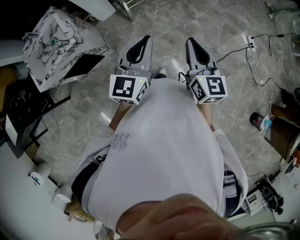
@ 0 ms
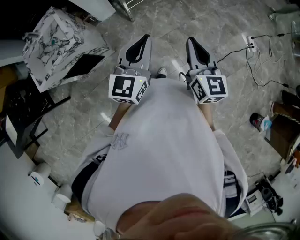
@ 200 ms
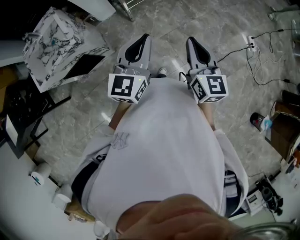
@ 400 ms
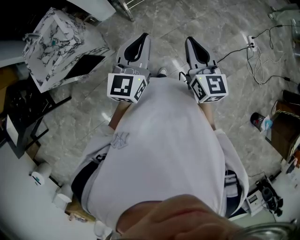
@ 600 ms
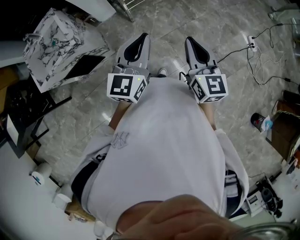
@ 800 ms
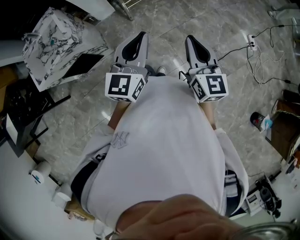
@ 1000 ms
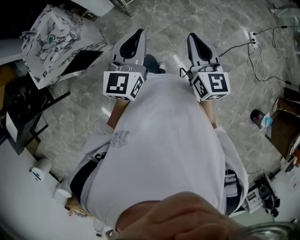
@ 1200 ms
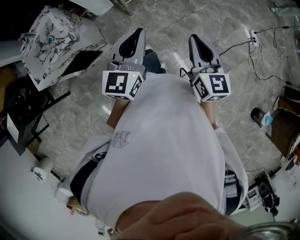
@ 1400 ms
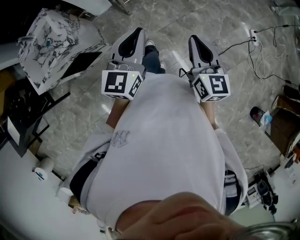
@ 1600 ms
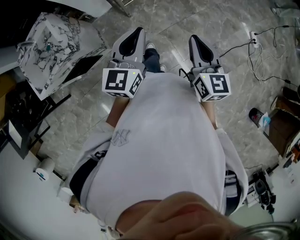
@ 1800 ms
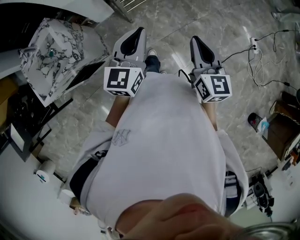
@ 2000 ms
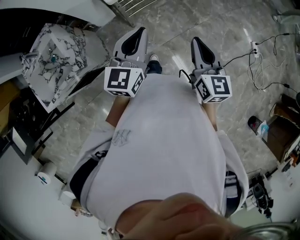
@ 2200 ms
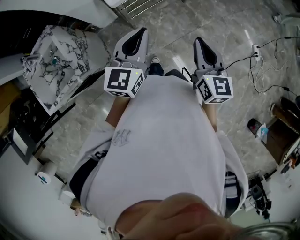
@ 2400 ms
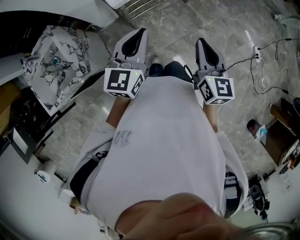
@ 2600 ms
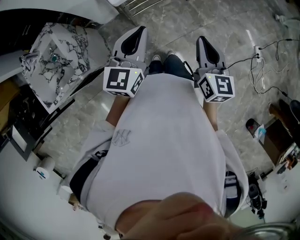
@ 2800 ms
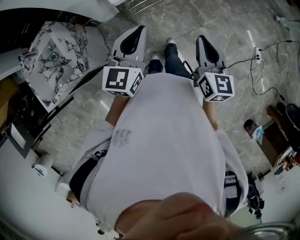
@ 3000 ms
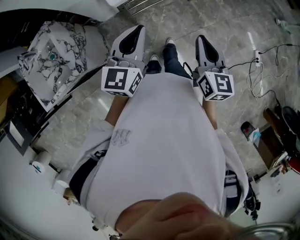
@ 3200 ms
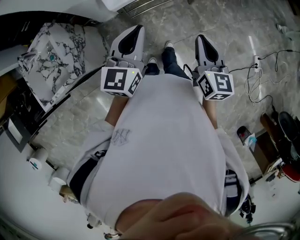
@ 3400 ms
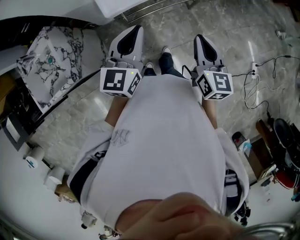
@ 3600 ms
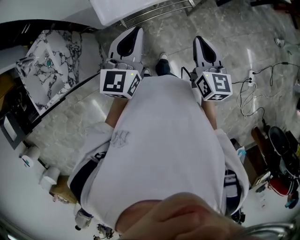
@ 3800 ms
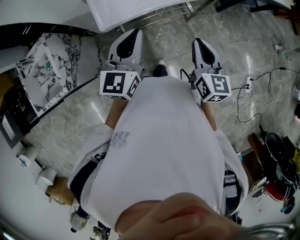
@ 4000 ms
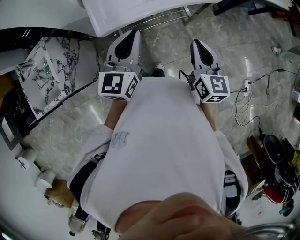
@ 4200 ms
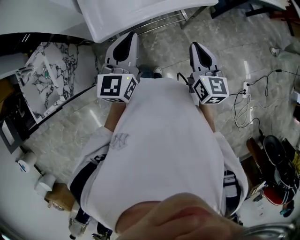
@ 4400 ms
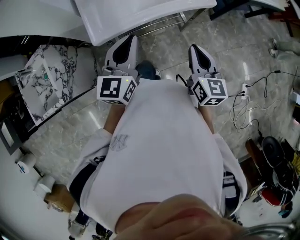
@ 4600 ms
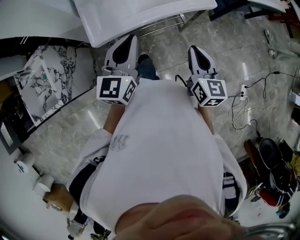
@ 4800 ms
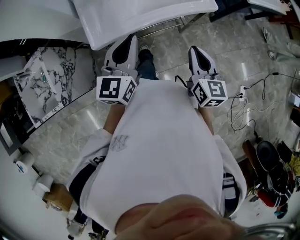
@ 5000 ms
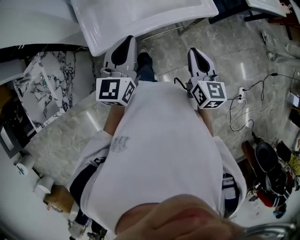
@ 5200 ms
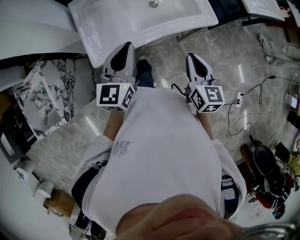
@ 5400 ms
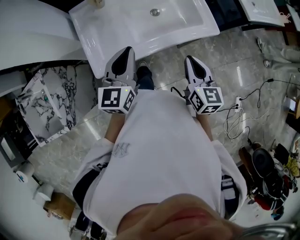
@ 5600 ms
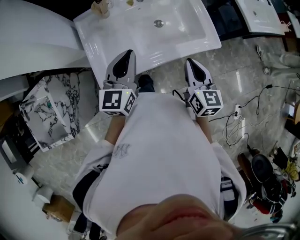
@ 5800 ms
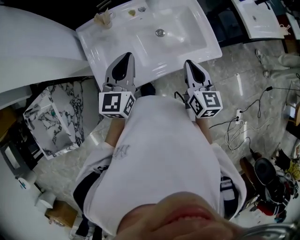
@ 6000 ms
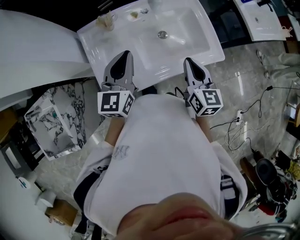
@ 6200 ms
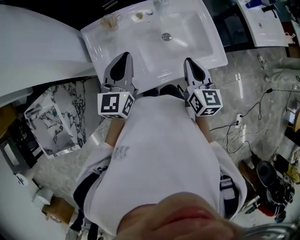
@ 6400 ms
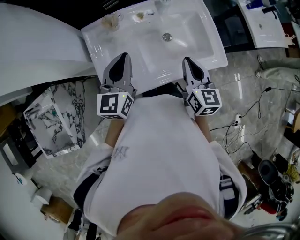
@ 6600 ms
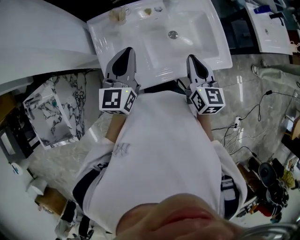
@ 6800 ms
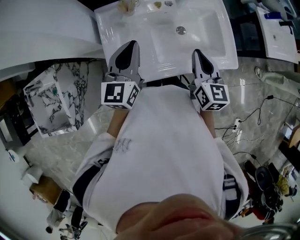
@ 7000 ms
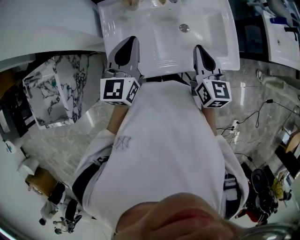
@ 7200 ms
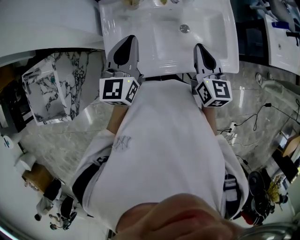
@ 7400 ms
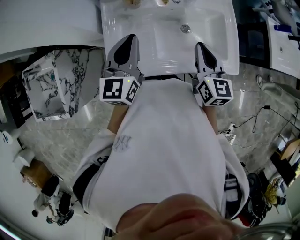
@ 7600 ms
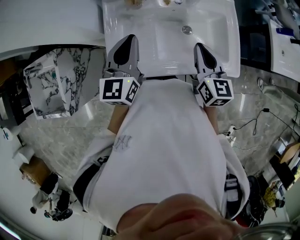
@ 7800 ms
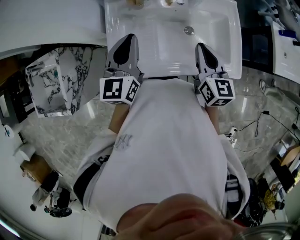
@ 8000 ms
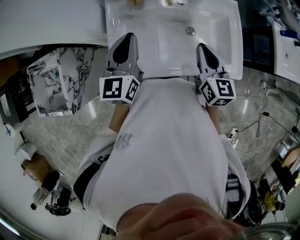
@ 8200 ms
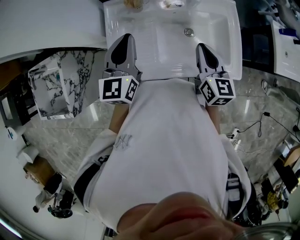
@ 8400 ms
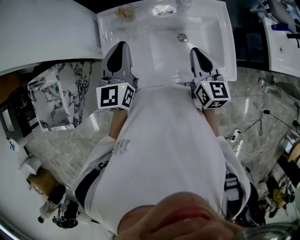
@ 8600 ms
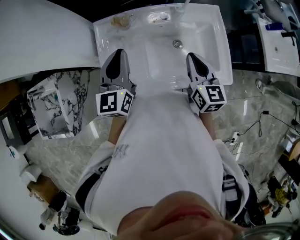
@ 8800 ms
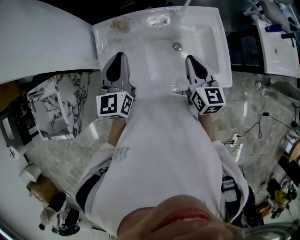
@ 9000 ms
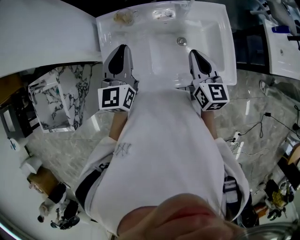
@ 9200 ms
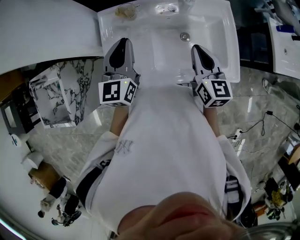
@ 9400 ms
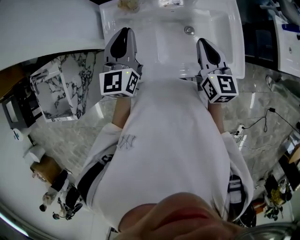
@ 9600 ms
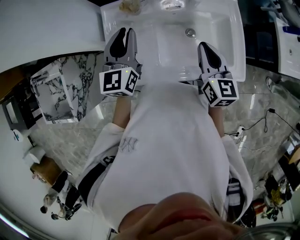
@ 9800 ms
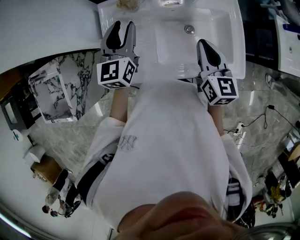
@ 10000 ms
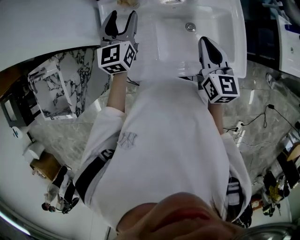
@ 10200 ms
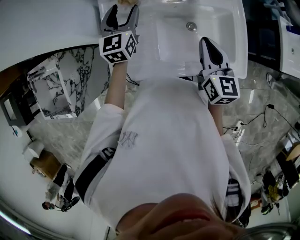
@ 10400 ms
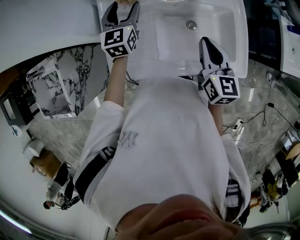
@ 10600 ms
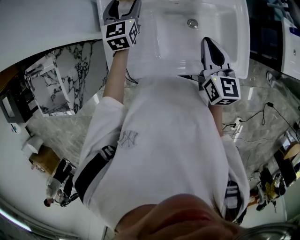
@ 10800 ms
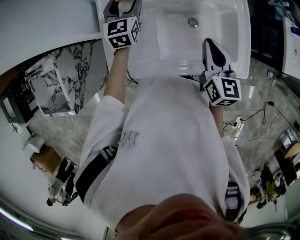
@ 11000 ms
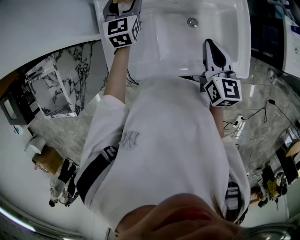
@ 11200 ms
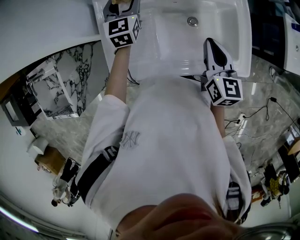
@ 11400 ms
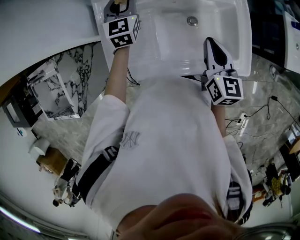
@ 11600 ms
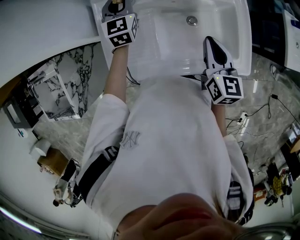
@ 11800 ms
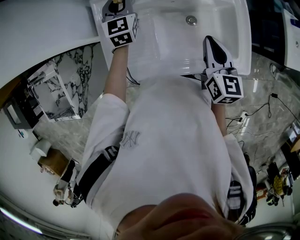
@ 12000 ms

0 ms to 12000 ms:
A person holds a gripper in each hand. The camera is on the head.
0 ms to 1600 ms: The left gripper changes place by roughly 5 cm. Meanwhile the right gripper moves approximately 5 cm.
1600 ms to 3000 ms: The two grippers go approximately 25 cm forward.
3000 ms to 4400 ms: Both grippers move forward and to the right, approximately 20 cm.
4400 ms to 6000 ms: Both grippers move forward, roughly 25 cm.
6000 ms to 7600 ms: The left gripper moves to the left, approximately 5 cm, while the right gripper travels forward by roughly 10 cm.
7600 ms to 9000 ms: The grippers make only small movements.
9000 ms to 10400 ms: The left gripper goes approximately 15 cm forward and downward, and opens its fingers.
10400 ms to 12000 ms: The left gripper moves forward, approximately 5 cm, and closes.

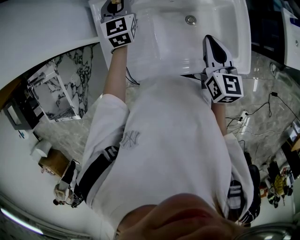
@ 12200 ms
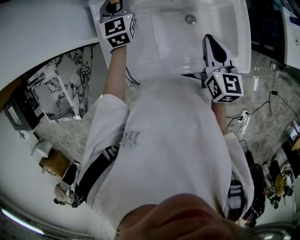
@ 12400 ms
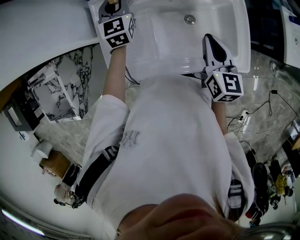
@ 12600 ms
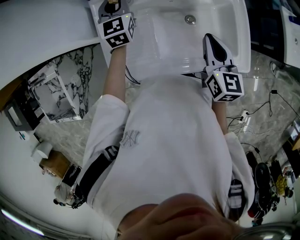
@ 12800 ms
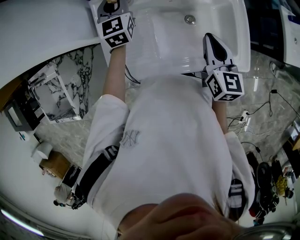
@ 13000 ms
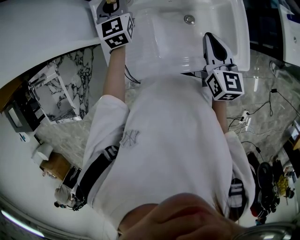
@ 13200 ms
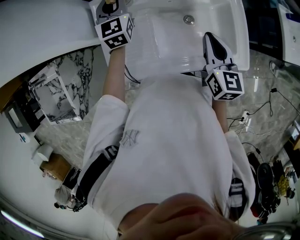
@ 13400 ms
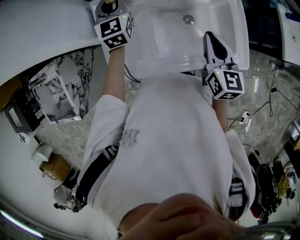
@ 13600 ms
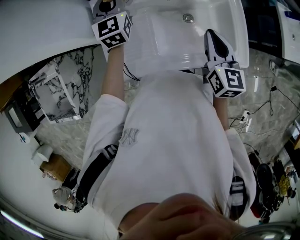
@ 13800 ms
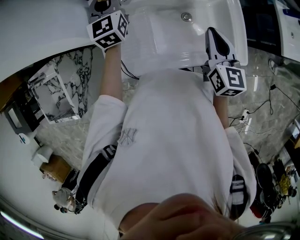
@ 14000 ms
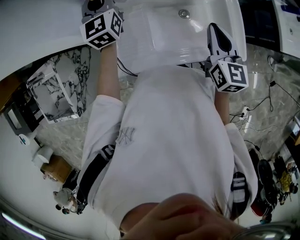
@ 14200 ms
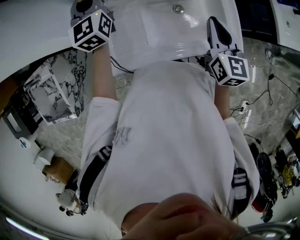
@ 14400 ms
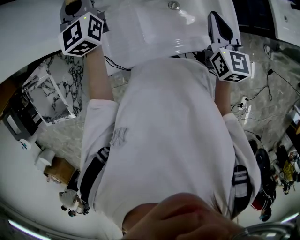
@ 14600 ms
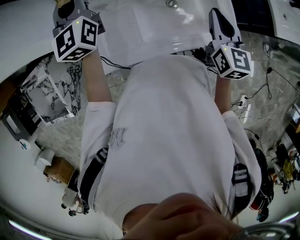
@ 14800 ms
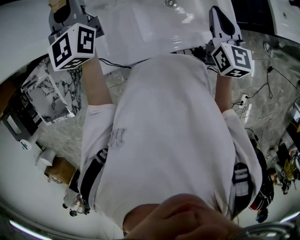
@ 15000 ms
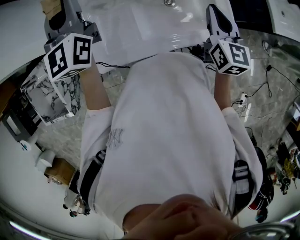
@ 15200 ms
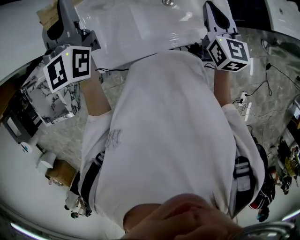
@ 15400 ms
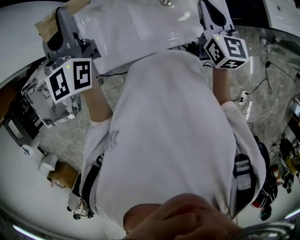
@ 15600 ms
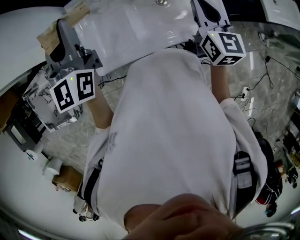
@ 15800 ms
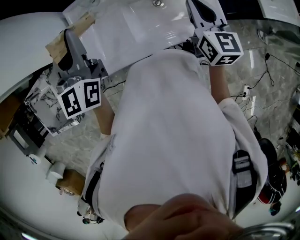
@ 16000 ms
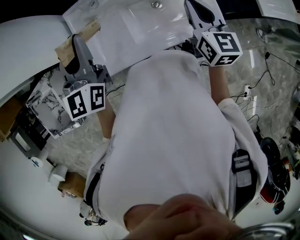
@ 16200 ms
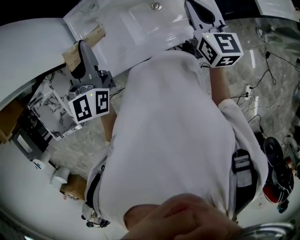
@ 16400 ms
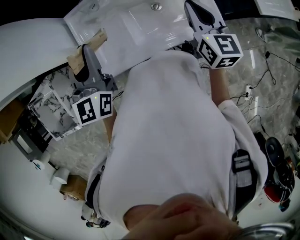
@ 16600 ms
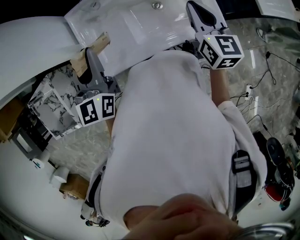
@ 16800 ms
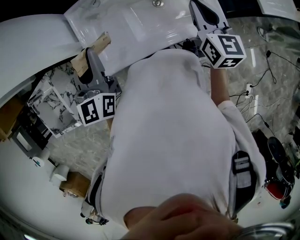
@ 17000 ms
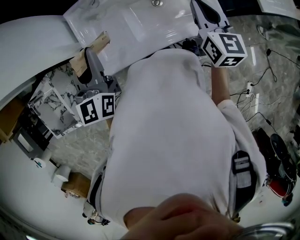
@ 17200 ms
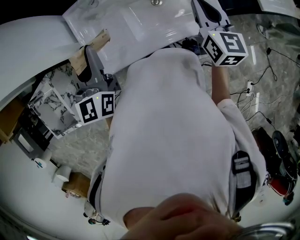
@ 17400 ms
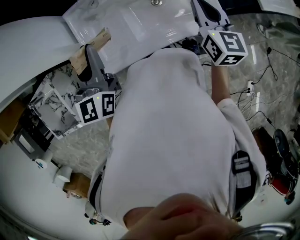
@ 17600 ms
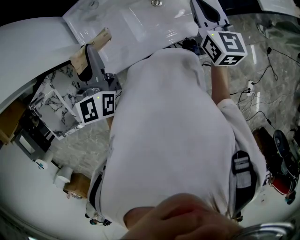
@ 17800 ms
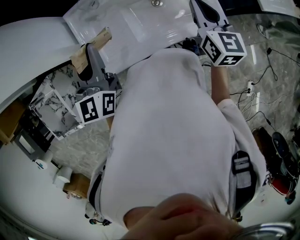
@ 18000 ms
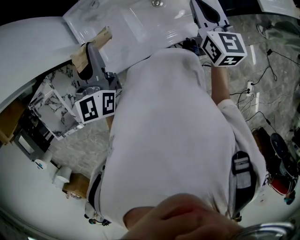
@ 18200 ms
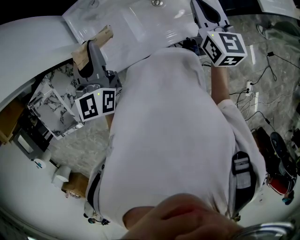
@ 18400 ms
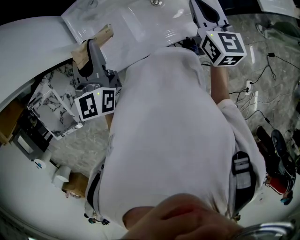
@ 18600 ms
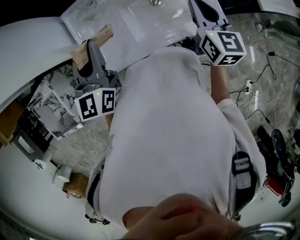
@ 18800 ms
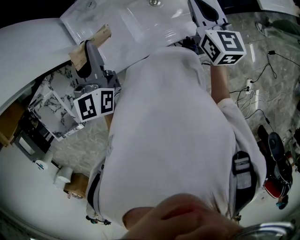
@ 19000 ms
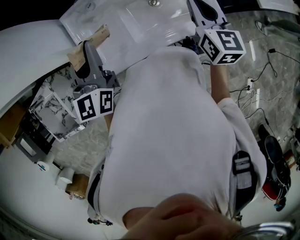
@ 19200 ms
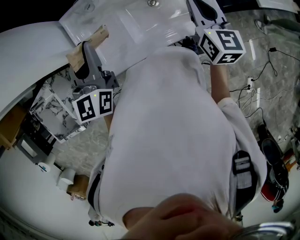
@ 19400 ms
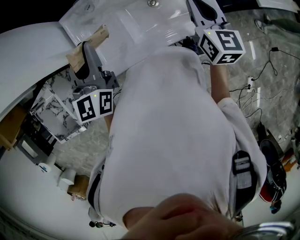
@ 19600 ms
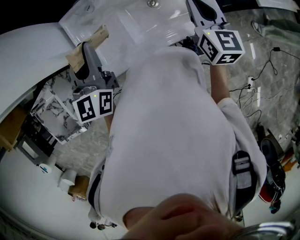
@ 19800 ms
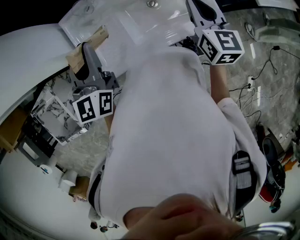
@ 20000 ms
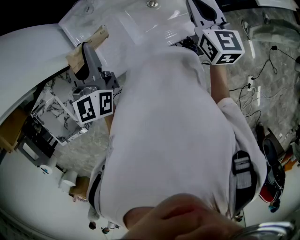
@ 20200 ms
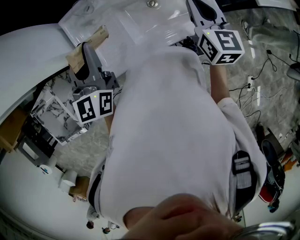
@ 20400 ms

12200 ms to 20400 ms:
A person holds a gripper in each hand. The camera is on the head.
12200 ms to 13800 ms: The left gripper travels upward by about 5 cm.
13800 ms to 15400 ms: The right gripper shifts about 5 cm to the right, while the left gripper travels upward and backward by about 20 cm.
15400 ms to 17200 ms: The left gripper shifts roughly 15 cm backward and downward.
17200 ms to 20400 ms: There are only small adjustments of the grippers.

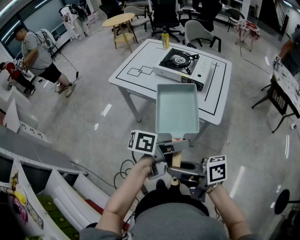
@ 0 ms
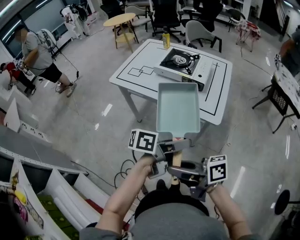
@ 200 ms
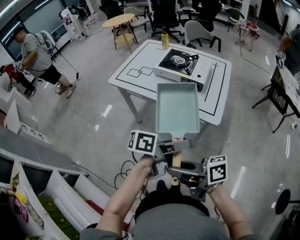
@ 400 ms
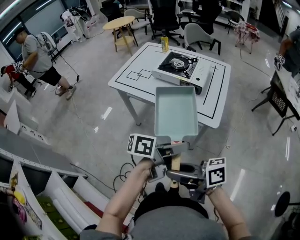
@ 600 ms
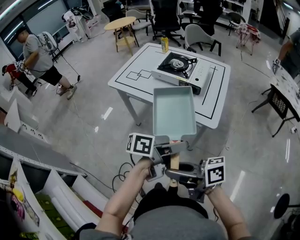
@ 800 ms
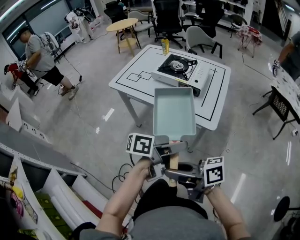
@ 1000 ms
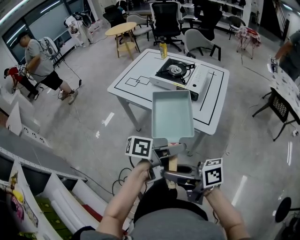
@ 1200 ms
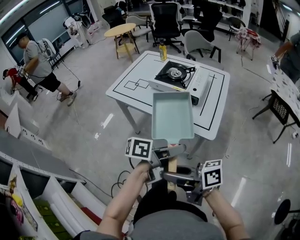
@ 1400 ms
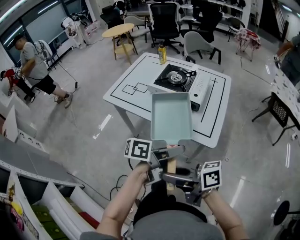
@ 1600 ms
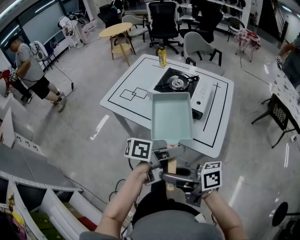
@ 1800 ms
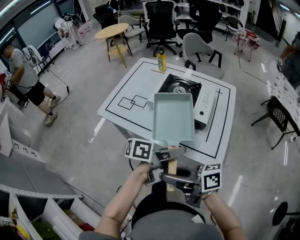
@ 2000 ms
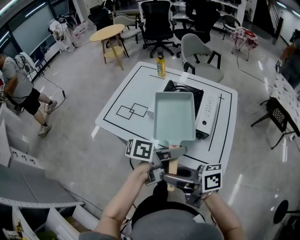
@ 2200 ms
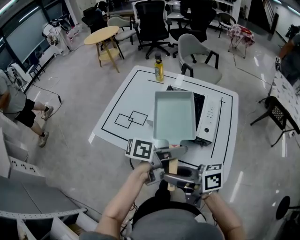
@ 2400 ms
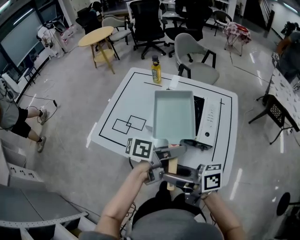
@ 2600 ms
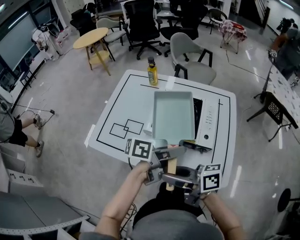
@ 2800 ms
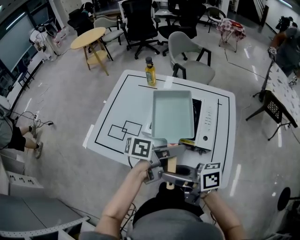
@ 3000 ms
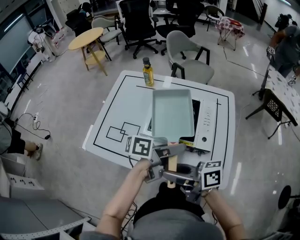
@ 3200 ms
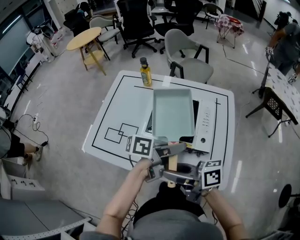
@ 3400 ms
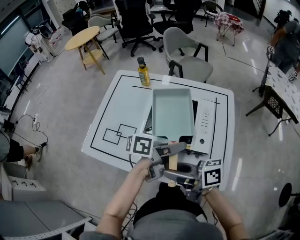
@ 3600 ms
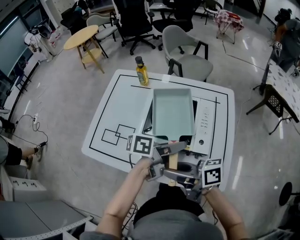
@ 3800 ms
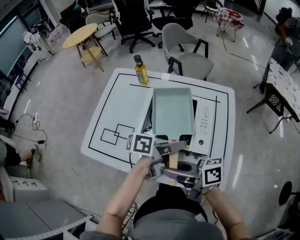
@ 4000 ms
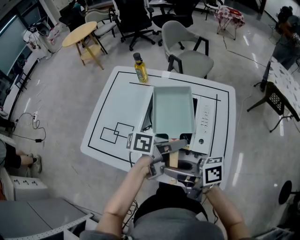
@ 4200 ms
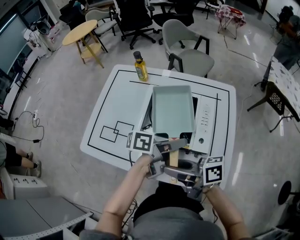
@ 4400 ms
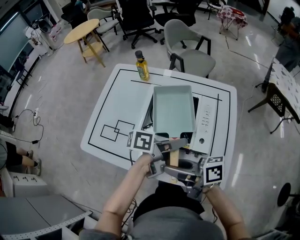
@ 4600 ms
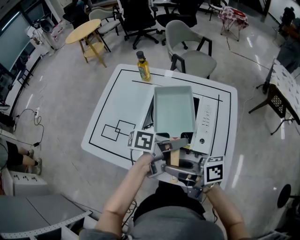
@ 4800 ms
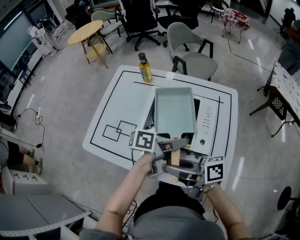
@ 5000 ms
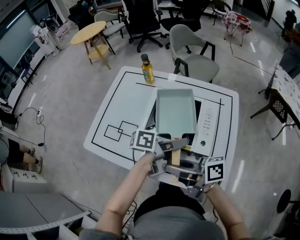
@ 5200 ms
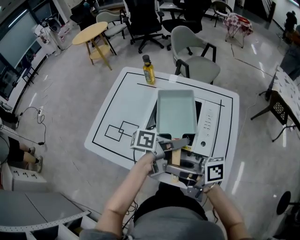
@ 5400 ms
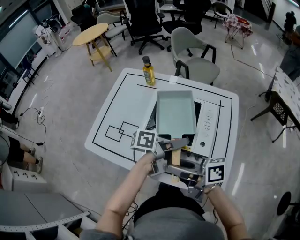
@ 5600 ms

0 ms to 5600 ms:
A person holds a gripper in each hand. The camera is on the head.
0 ms to 1400 ms: The left gripper moves roughly 5 cm.
1400 ms to 2800 ms: The left gripper ends up approximately 30 cm from where it was; the right gripper changes place by about 35 cm.
2800 ms to 4200 ms: The left gripper changes place by roughly 10 cm; the right gripper moves roughly 10 cm.
4200 ms to 5600 ms: The grippers make only small movements.
